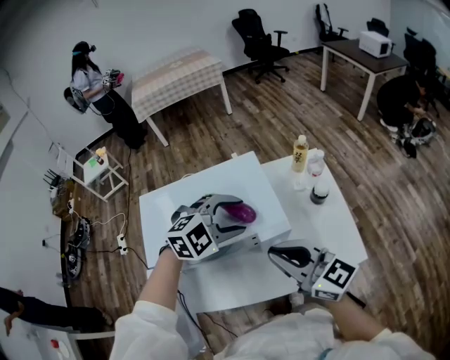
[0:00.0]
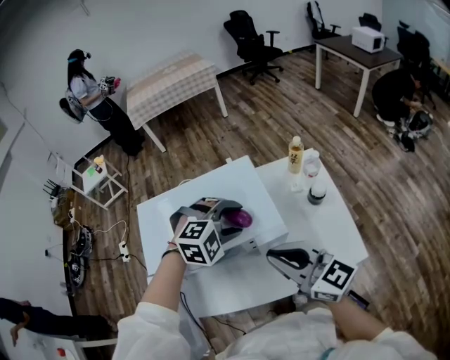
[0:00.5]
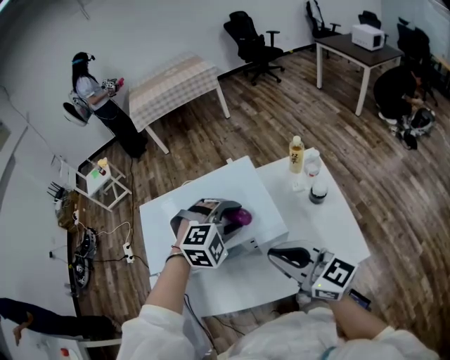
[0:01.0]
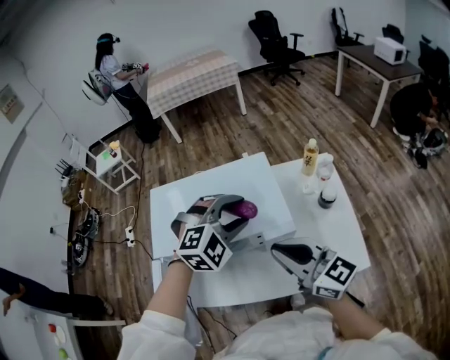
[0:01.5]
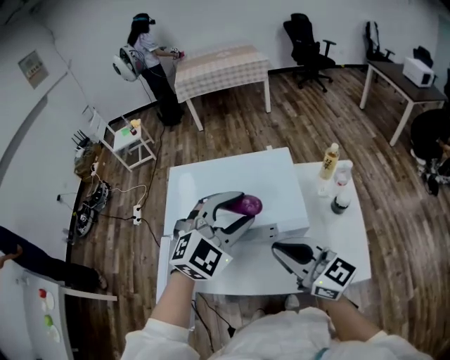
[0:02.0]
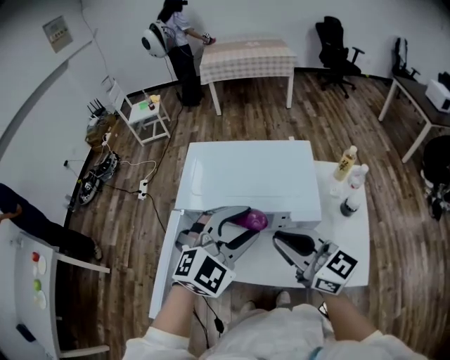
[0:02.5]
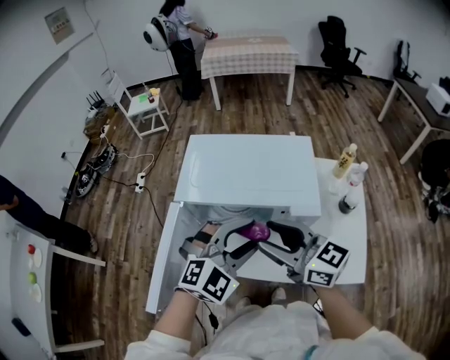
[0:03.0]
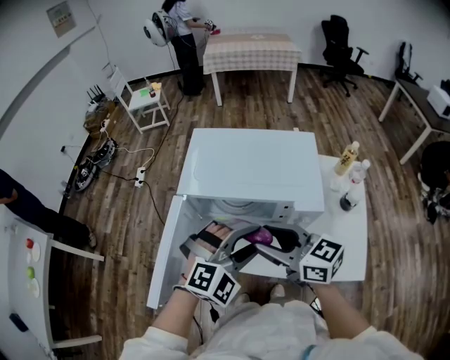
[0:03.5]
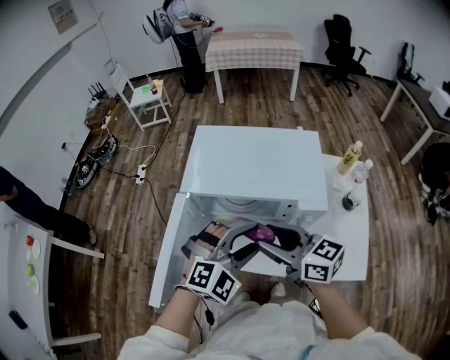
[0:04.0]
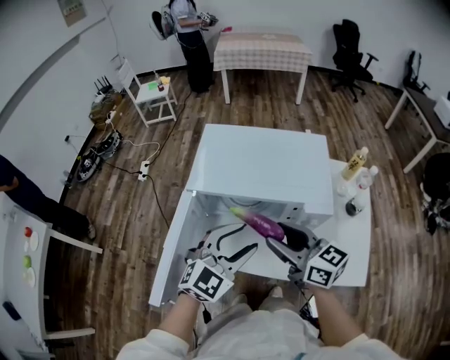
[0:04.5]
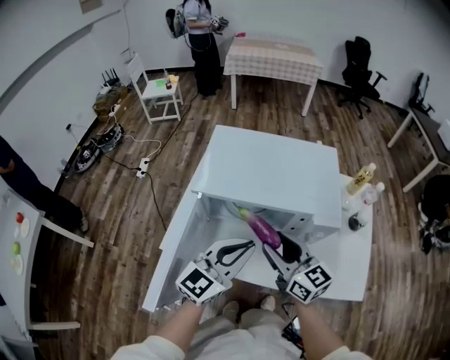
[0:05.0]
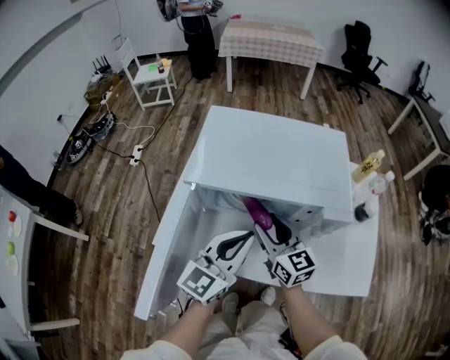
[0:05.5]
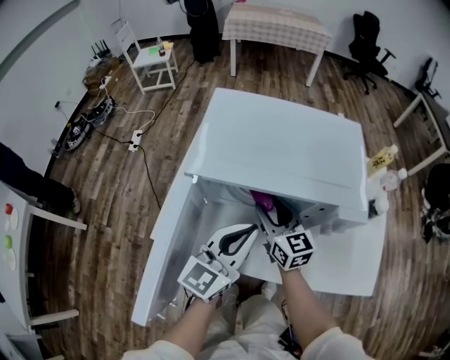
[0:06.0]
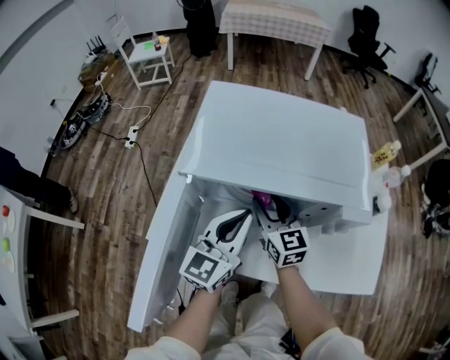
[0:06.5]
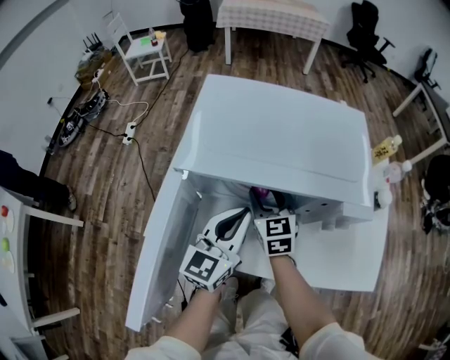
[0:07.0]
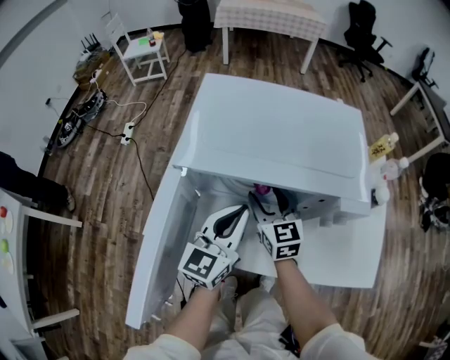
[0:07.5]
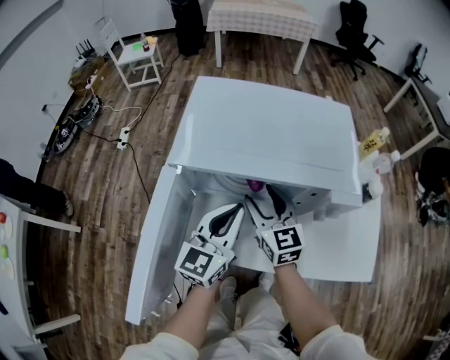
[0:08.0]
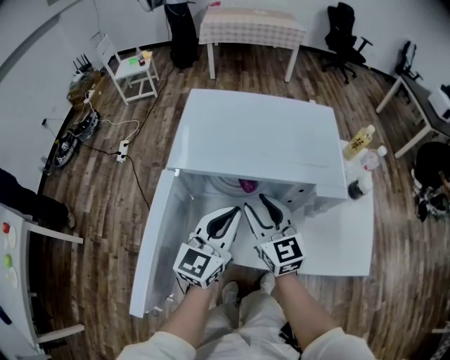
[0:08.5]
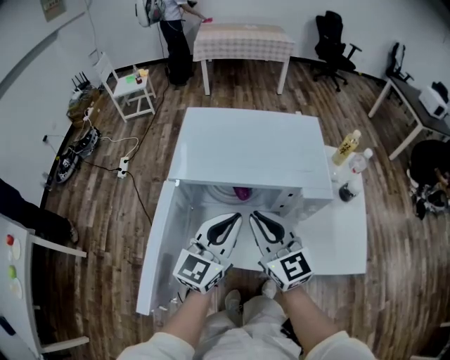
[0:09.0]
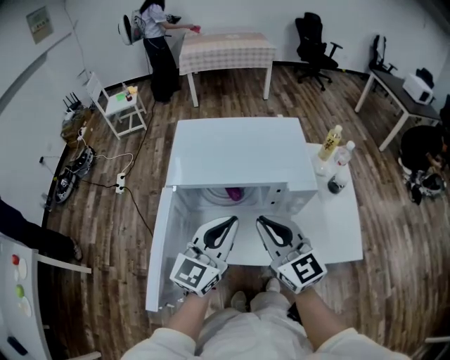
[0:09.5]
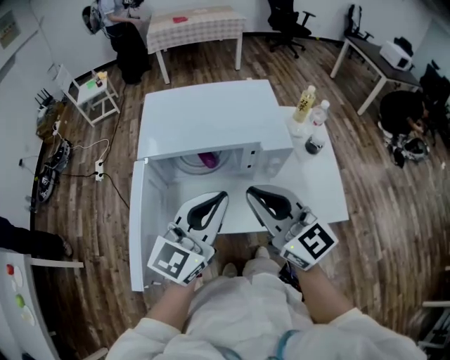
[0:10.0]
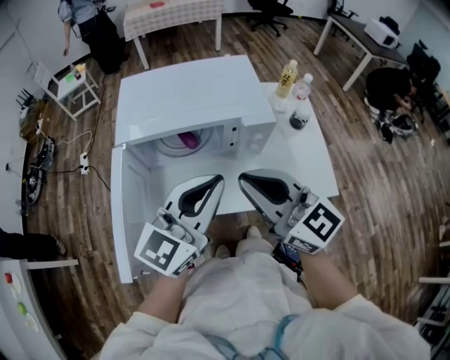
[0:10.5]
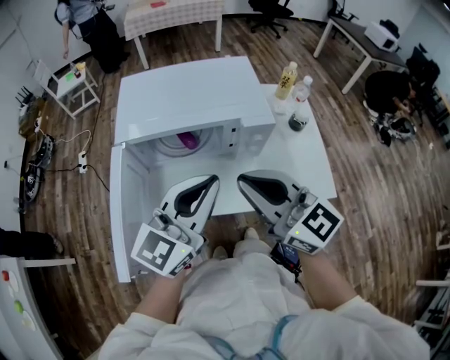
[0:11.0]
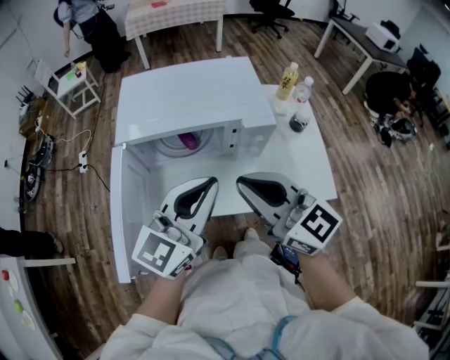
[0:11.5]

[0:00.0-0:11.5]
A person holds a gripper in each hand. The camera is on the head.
0:00.0 to 0:02.0: The left gripper travels upward by approximately 10 cm, and rotates some 30 degrees.
0:02.0 to 0:04.0: The left gripper moves backward, downward and to the left, approximately 15 cm, while the right gripper moves to the left and downward, roughly 10 cm, changes its angle by roughly 20 degrees, and opens up.
0:04.0 to 0:06.0: The left gripper heads to the left, downward and forward, covering some 10 cm, rotates around the line of its fingers by some 60 degrees, counterclockwise from behind, and closes, while the right gripper travels downward and forward by some 20 cm, and changes its angle by approximately 30 degrees.
0:06.0 to 0:07.5: The left gripper changes place by approximately 5 cm.
0:07.5 to 0:09.5: The left gripper shifts some 15 cm upward and backward, while the right gripper goes roughly 25 cm upward and backward, and closes its fingers.
0:09.5 to 0:11.5: The grippers both shift backward by about 5 cm.

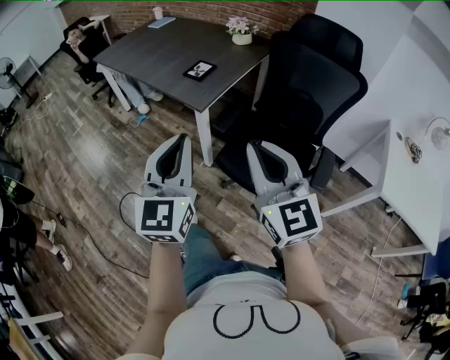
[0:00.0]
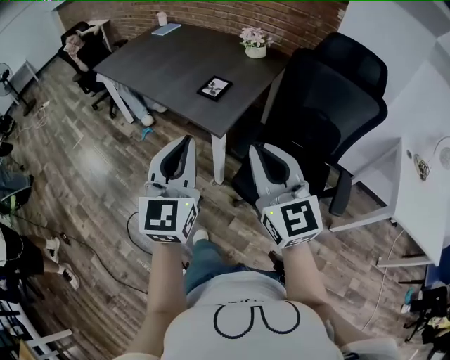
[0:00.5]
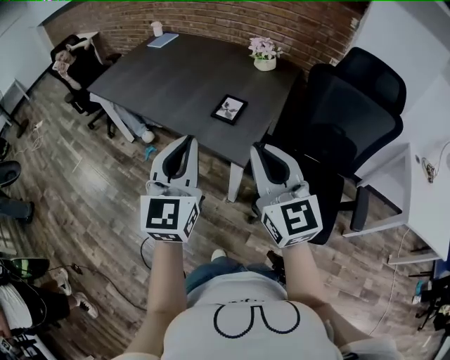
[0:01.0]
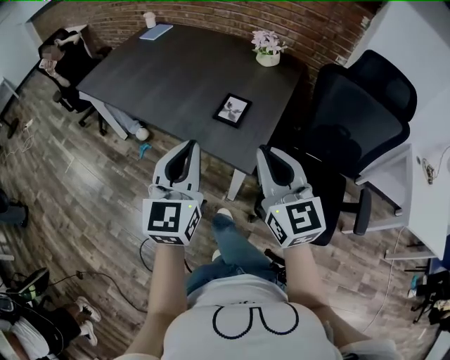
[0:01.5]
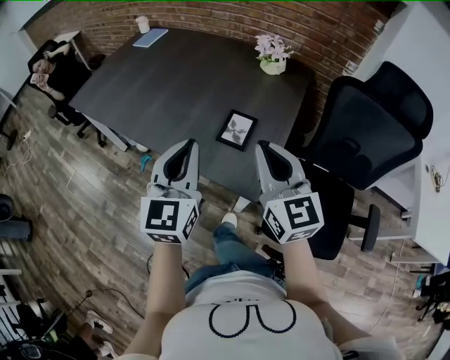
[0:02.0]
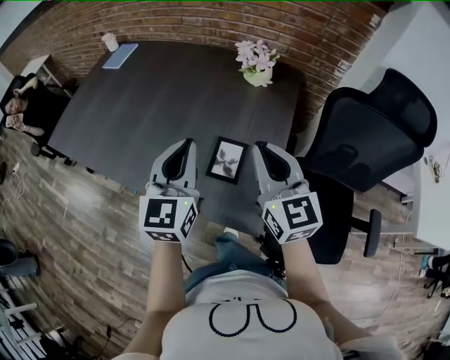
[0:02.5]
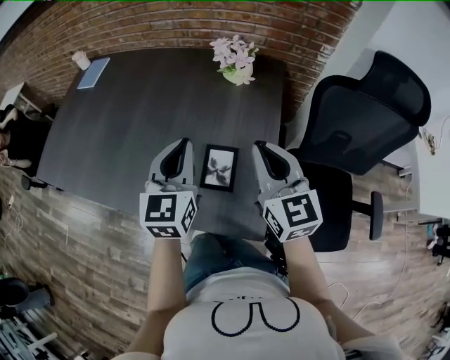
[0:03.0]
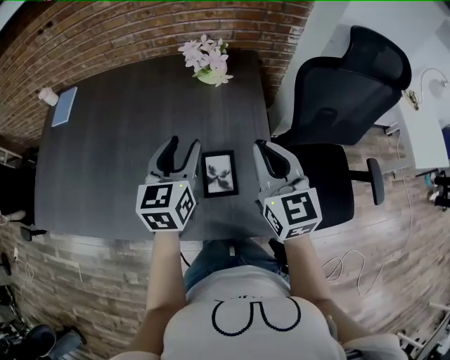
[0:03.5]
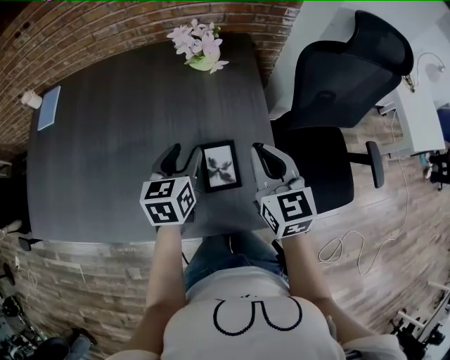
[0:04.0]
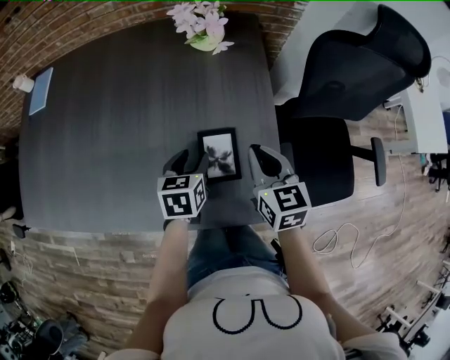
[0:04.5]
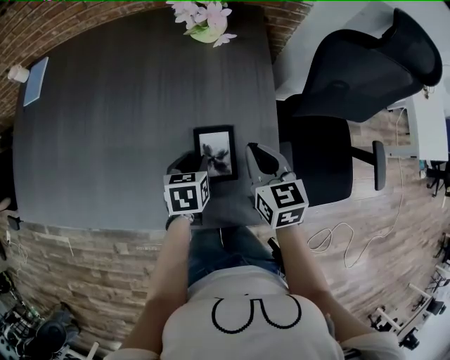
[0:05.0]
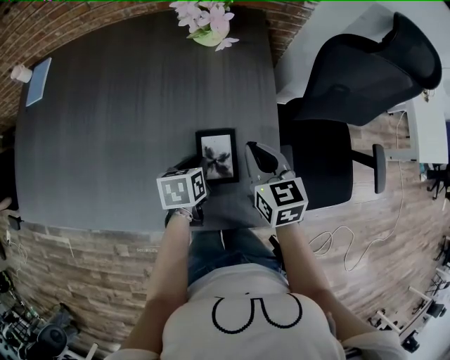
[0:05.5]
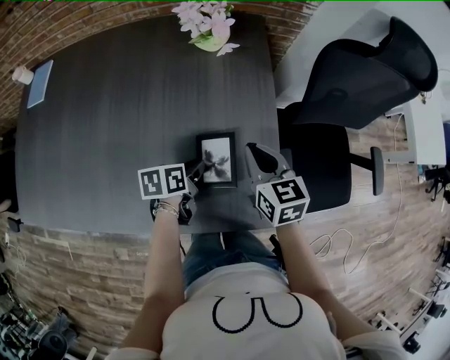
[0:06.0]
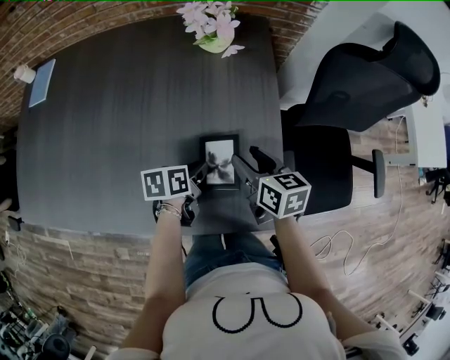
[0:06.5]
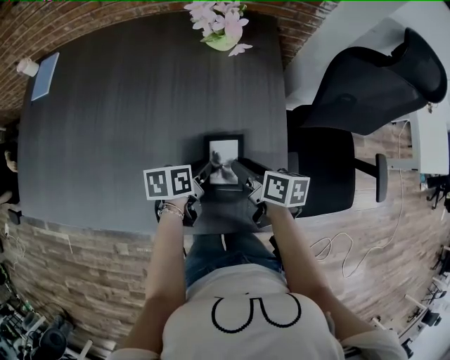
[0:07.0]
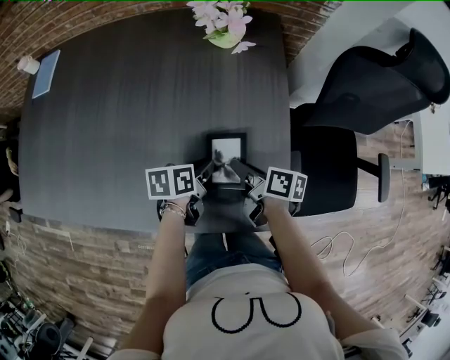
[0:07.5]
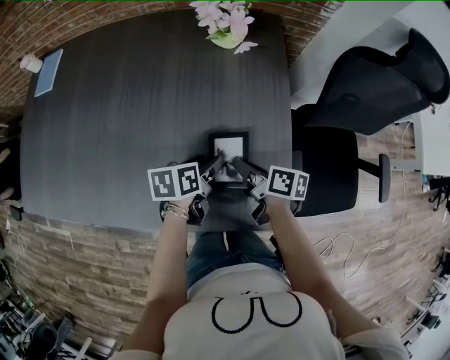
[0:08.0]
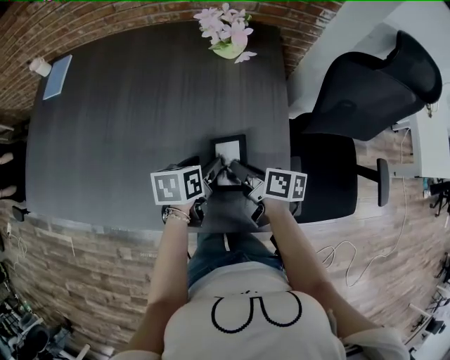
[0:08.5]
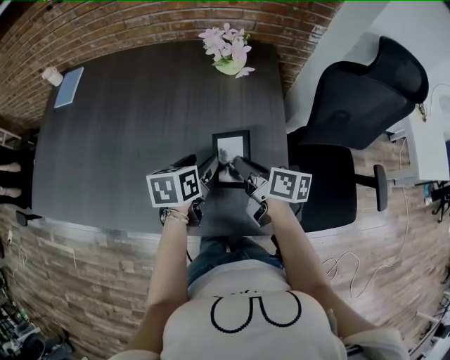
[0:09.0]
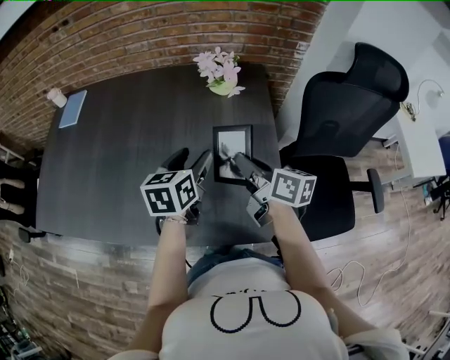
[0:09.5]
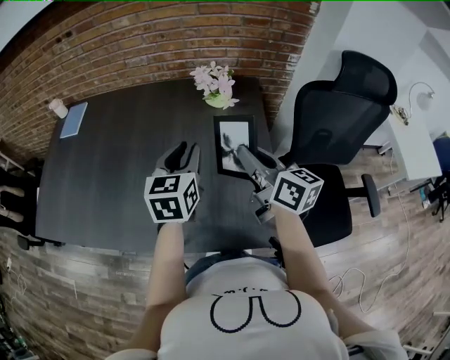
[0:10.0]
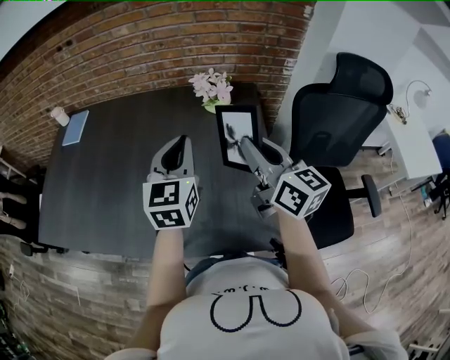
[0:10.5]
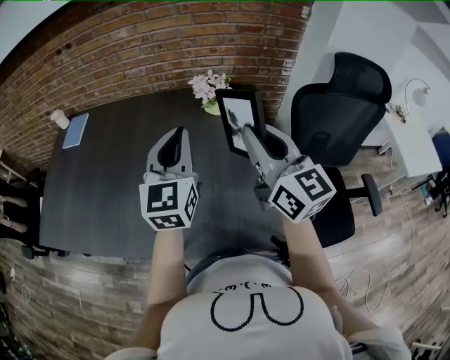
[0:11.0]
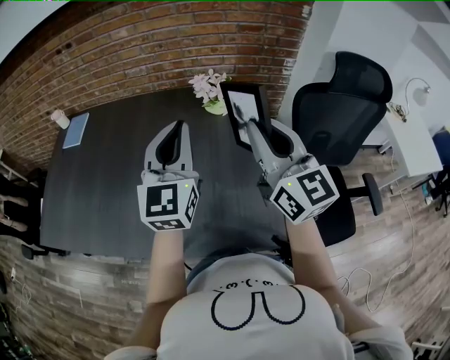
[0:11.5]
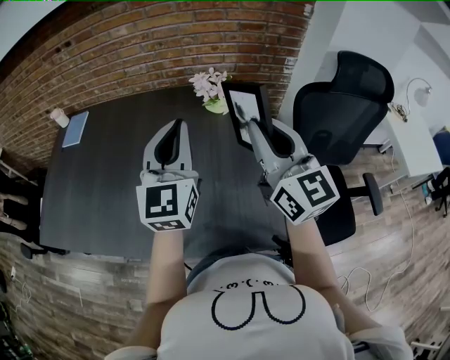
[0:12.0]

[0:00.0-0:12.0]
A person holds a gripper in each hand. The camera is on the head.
0:00.0 to 0:02.0: The two grippers travel together, forward and to the left, roughly 50 cm.
0:02.0 to 0:04.0: The left gripper shifts by approximately 35 cm, swivels approximately 40 degrees, and opens up. The right gripper moves approximately 25 cm, and changes its angle by approximately 40 degrees.
0:04.0 to 0:06.0: The grippers both shift downward by some 15 cm. The left gripper turns by about 40 degrees, and closes its fingers.
0:06.0 to 0:08.0: The right gripper heads downward, covering roughly 10 cm, rotates around the line of its fingers by roughly 50 degrees, clockwise from behind, and opens, then closes once more. The left gripper opens its fingers.
0:08.0 to 0:10.0: Both grippers move upward, some 25 cm. The left gripper swivels approximately 50 degrees, and closes. The right gripper rotates approximately 50 degrees.
0:10.0 to 0:12.0: Both grippers travel together upward, some 15 cm. The left gripper swivels about 30 degrees, and closes. Meanwhile the right gripper changes its angle by roughly 40 degrees.

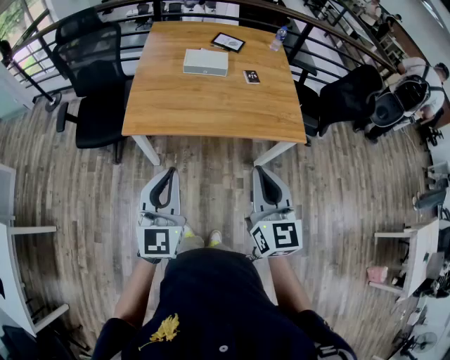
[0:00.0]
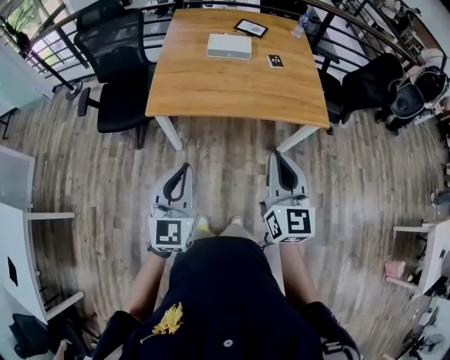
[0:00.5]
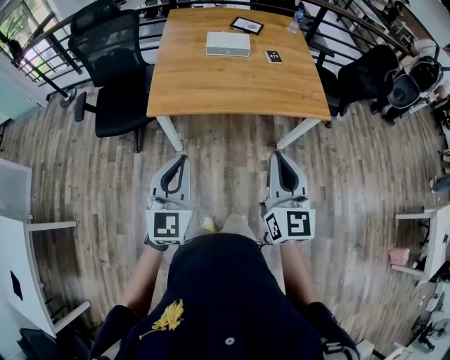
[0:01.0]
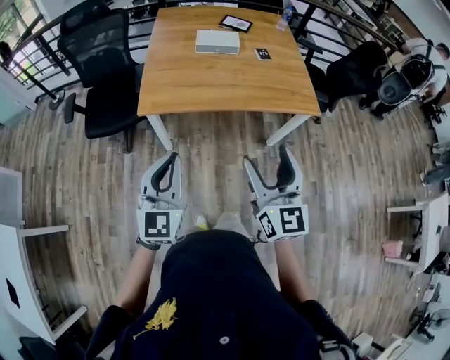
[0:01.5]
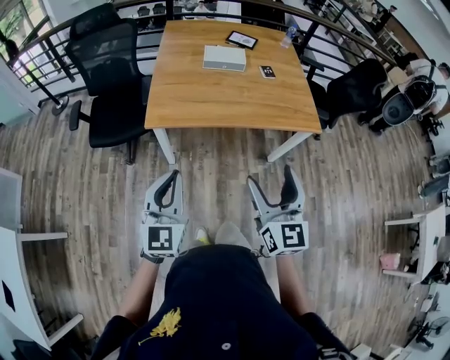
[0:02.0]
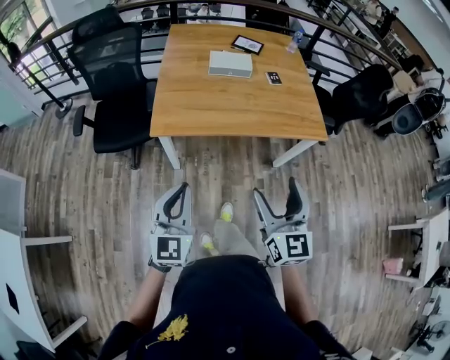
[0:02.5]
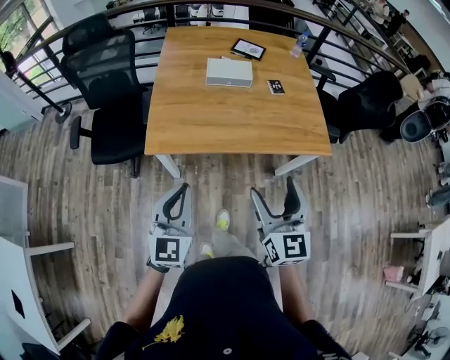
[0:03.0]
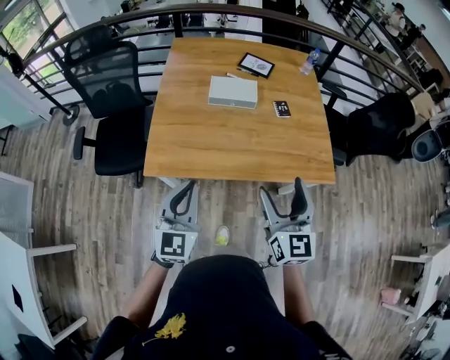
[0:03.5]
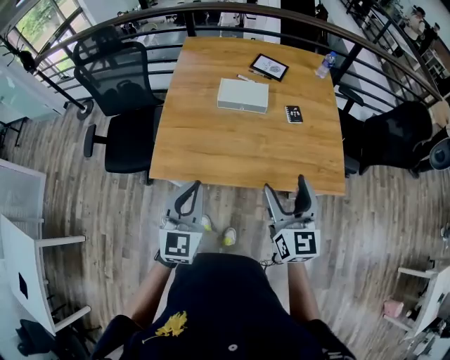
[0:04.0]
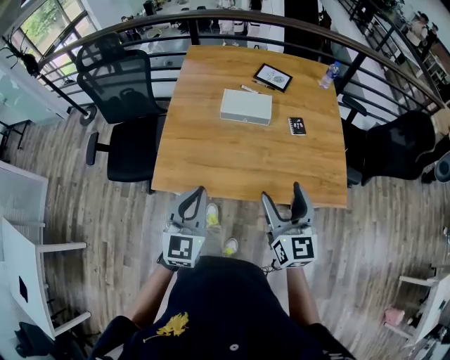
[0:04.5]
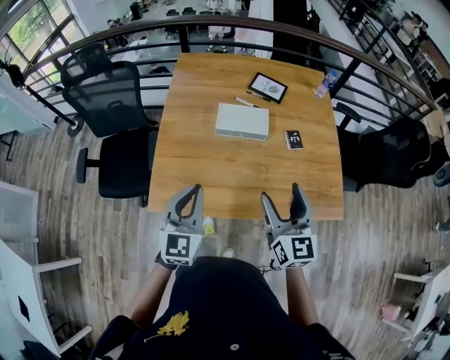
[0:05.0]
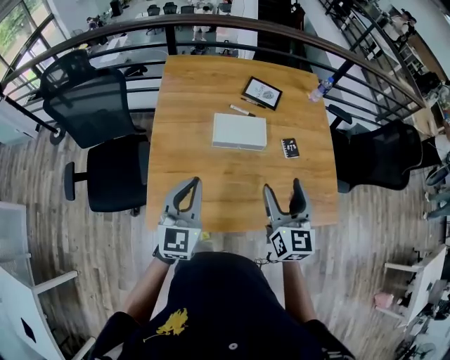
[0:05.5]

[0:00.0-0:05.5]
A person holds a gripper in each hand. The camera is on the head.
0:00.0 to 0:02.0: The right gripper moves to the left and backward, some 10 cm, and opens up. The left gripper heads to the left, covering about 10 cm.
0:02.0 to 0:03.5: The two grippers go some 25 cm forward.
0:03.5 to 0:05.5: The two grippers go about 30 cm forward.
